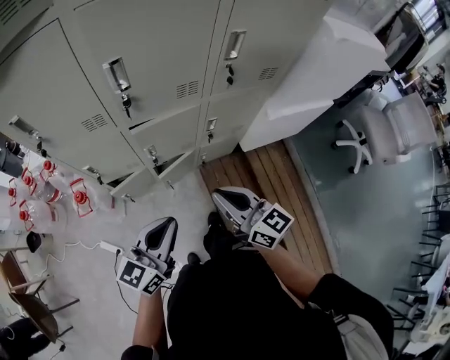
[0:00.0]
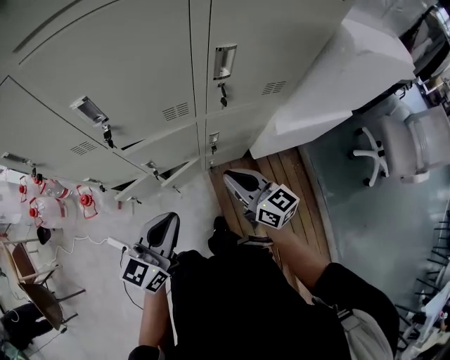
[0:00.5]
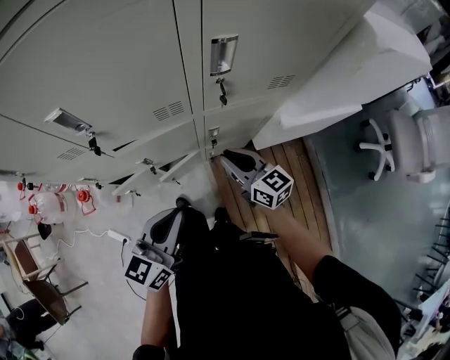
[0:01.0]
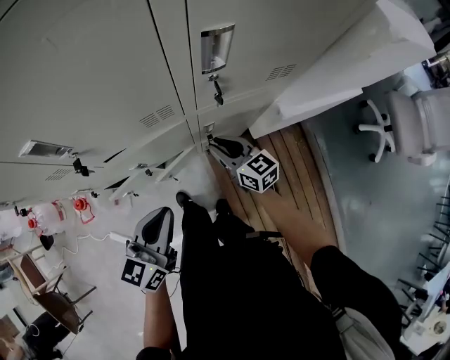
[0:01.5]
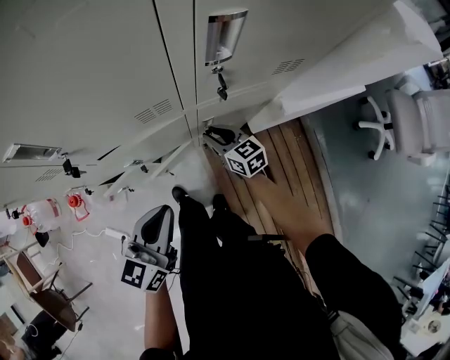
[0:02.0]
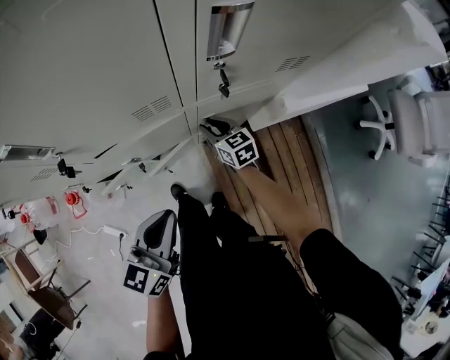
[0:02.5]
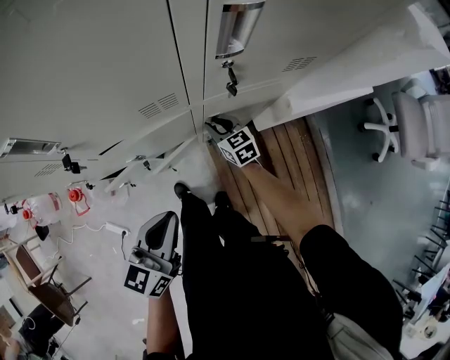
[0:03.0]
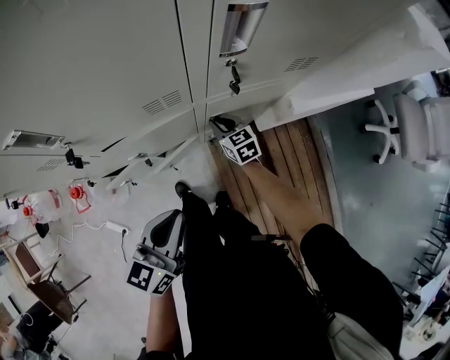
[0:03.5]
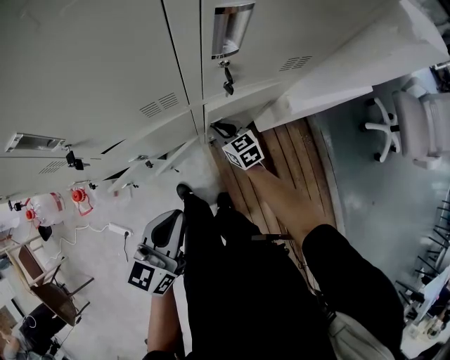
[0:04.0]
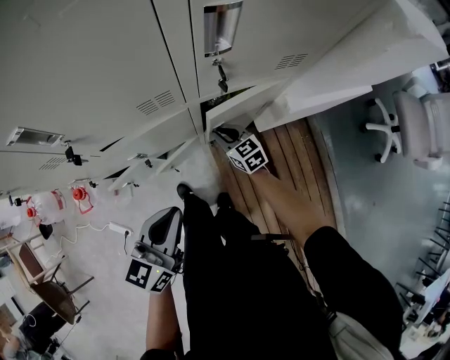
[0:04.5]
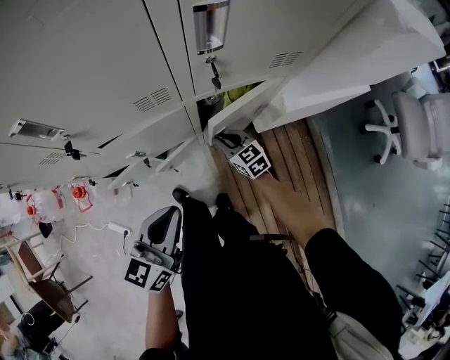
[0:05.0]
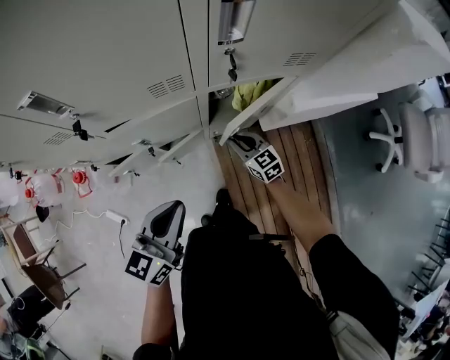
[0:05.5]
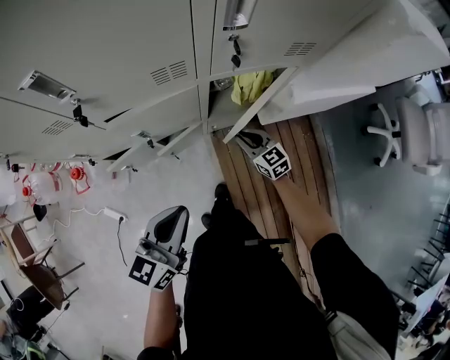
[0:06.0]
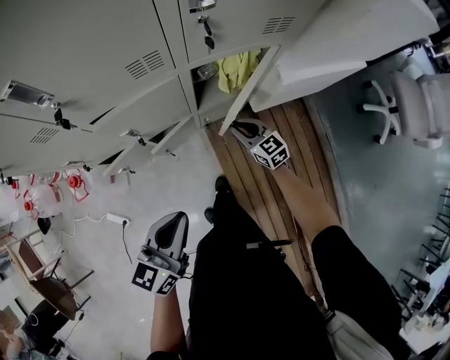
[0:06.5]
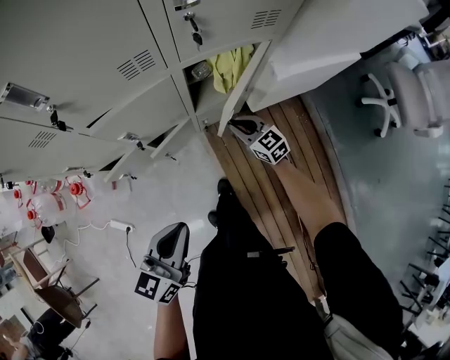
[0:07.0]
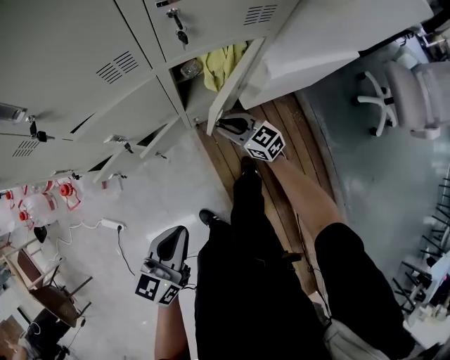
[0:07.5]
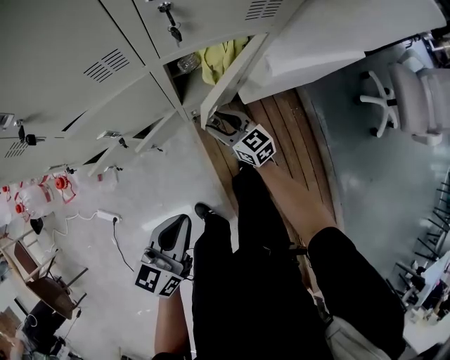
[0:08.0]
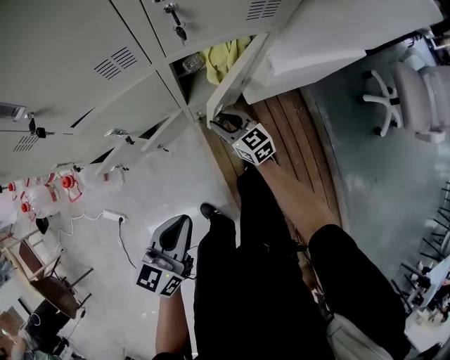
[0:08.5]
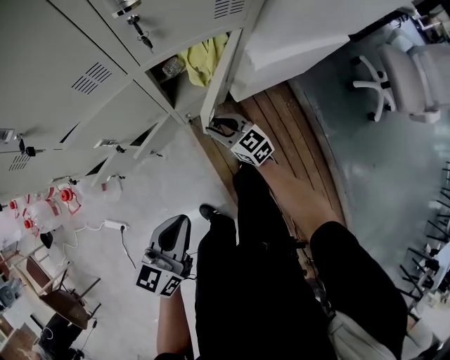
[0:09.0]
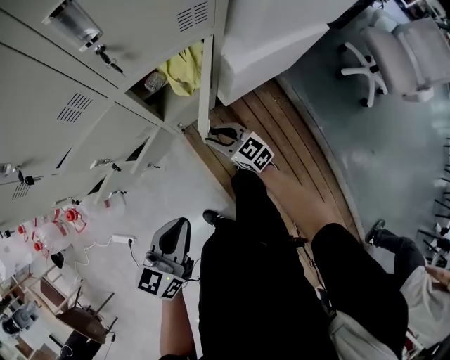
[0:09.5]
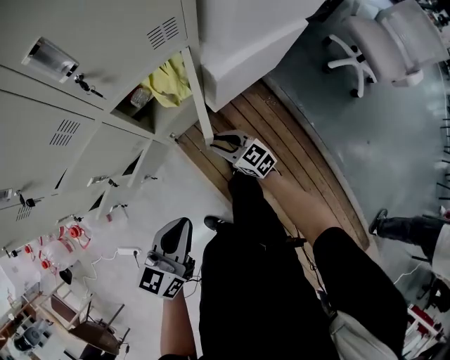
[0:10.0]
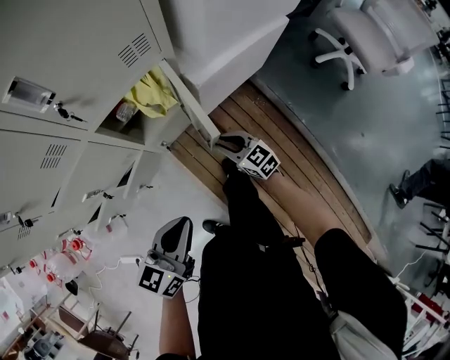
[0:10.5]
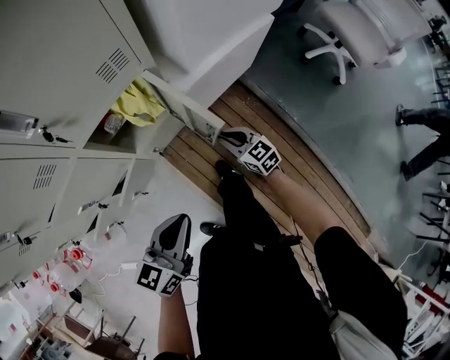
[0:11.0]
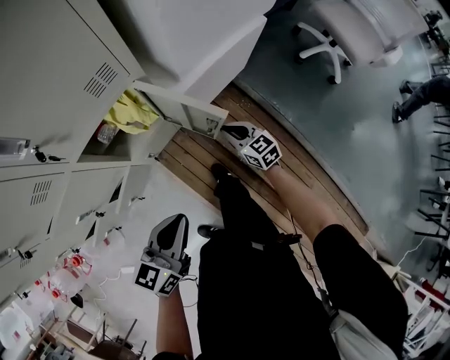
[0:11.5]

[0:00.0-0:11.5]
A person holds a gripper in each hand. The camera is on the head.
0:00.0 to 0:02.0: The right gripper is displaced forward and downward by some 40 cm, and changes its angle by some 20 degrees. The left gripper heads forward and to the right, covering about 20 cm.
0:02.0 to 0:04.0: The right gripper moves roughly 5 cm.
0:04.0 to 0:06.0: The left gripper moves backward, some 5 cm. The right gripper goes about 10 cm backward and to the right.
0:06.0 to 0:07.5: The left gripper shifts about 10 cm backward and downward.
0:07.5 to 0:09.5: Both grippers move to the right, about 5 cm.
0:09.5 to 0:11.5: The left gripper travels to the right and forward by some 15 cm. The right gripper heads to the right, covering about 25 cm, changes its angle by some 20 degrees, and closes its fingers.

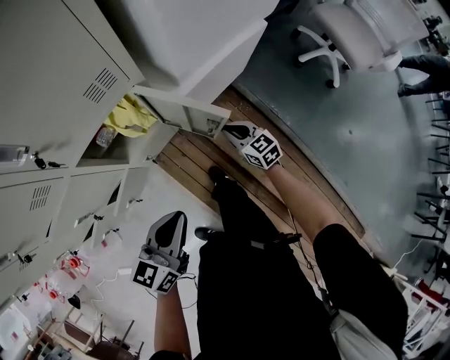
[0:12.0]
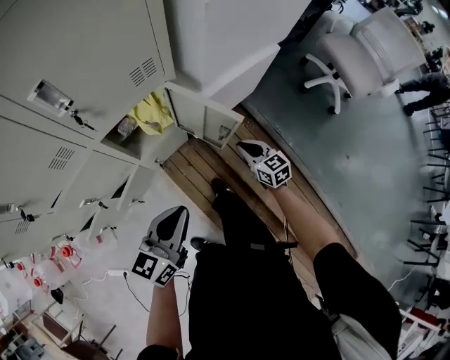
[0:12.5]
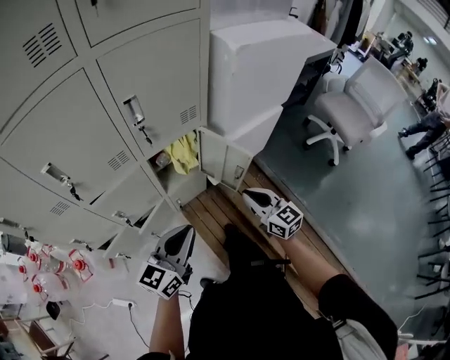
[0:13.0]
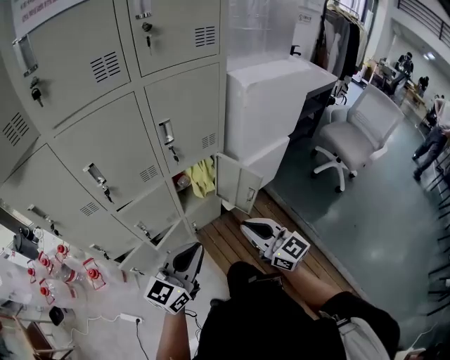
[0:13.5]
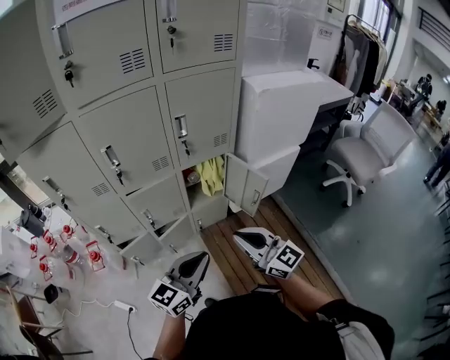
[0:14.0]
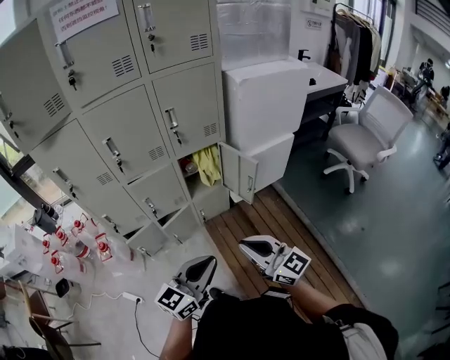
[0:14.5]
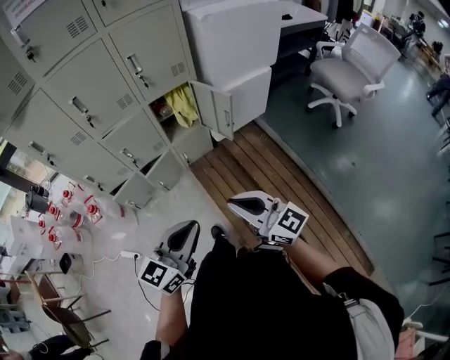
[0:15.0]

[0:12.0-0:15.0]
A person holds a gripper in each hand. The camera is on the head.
0:12.0 to 0:13.5: The left gripper heads upward, backward and to the left, covering about 30 cm, and swivels approximately 30 degrees. Meanwhile the right gripper moves upward, backward and to the left, roughly 50 cm, and tilts its fingers roughly 30 degrees upward.
0:13.5 to 0:15.0: Both grippers move backward, approximately 25 cm.

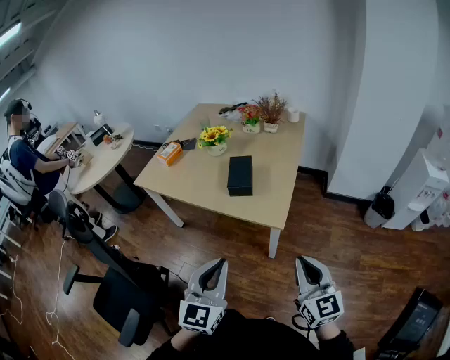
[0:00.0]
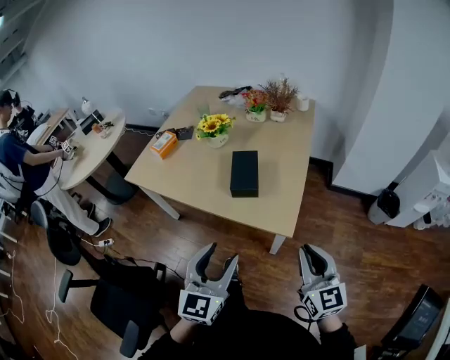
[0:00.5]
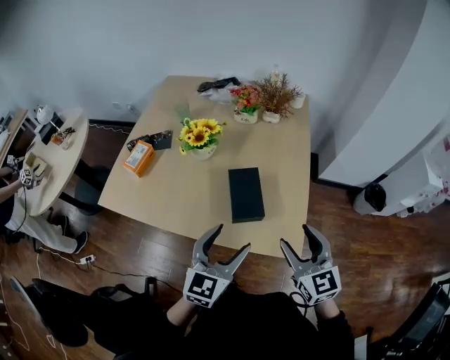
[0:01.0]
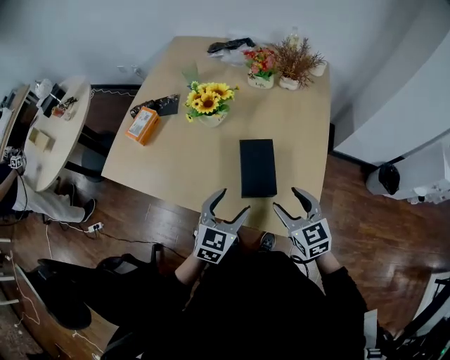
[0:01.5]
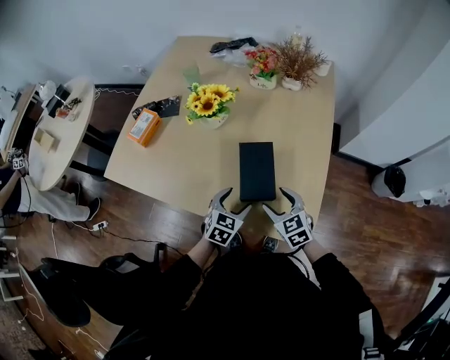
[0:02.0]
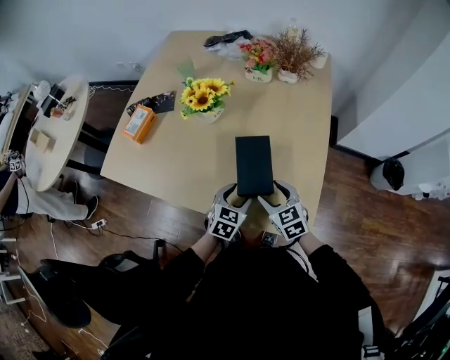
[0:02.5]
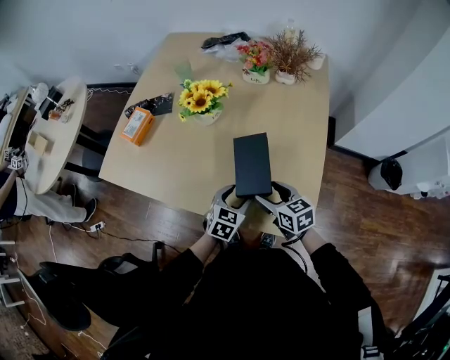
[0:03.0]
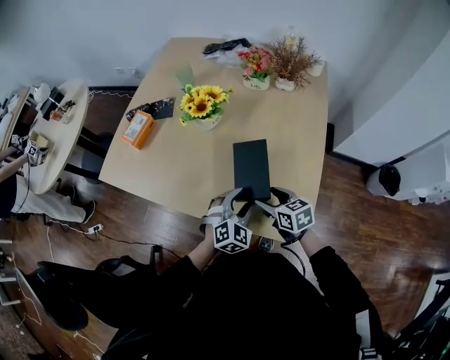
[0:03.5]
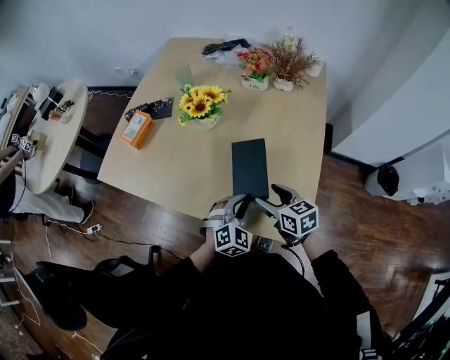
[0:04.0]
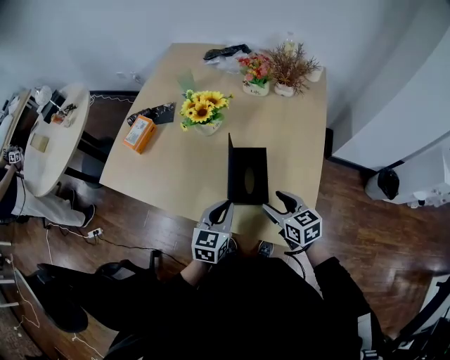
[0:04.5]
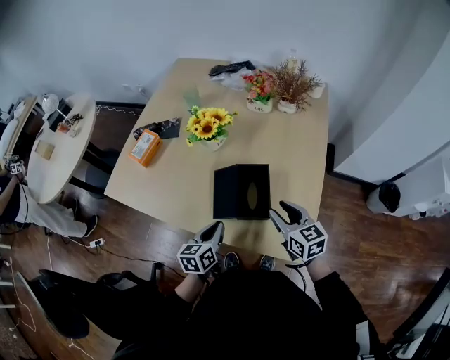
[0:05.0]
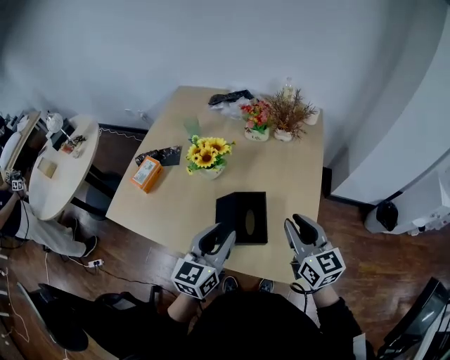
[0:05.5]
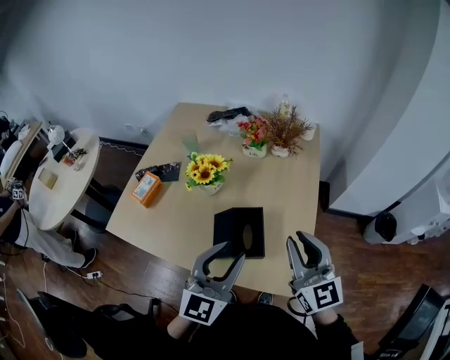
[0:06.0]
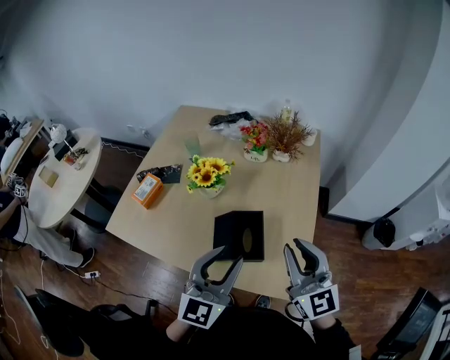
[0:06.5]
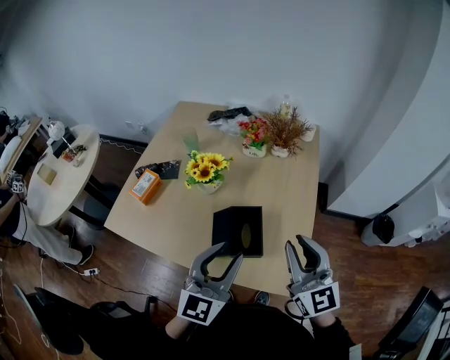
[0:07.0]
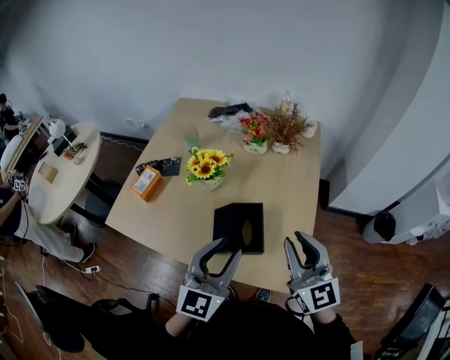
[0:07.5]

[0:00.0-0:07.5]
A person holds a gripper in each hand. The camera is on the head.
0:00.0 to 0:02.0: The pair of grippers is taken forward, roughly 50 cm. The two grippers go roughly 30 cm downward. The right gripper tilts its fingers roughly 30 degrees downward, and opens up, while the left gripper tips its fingers downward by roughly 40 degrees, and opens up.
0:02.0 to 0:04.0: The right gripper turns by roughly 30 degrees. Meanwhile the left gripper changes place by approximately 5 cm, rotates about 30 degrees, and closes its fingers.
0:04.0 to 0:05.5: The two grippers go about 20 cm upward. The right gripper rotates roughly 30 degrees, and closes up; the left gripper twists about 50 degrees counterclockwise, seen from behind.
0:05.5 to 0:07.5: The grippers both shift upward by roughly 5 cm. The left gripper turns by roughly 20 degrees.

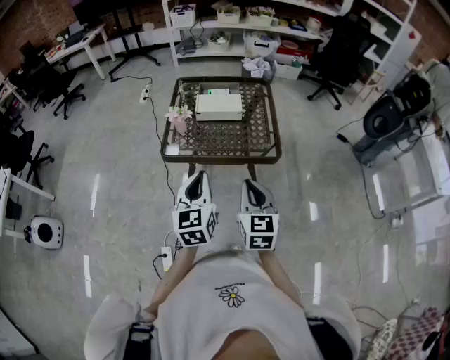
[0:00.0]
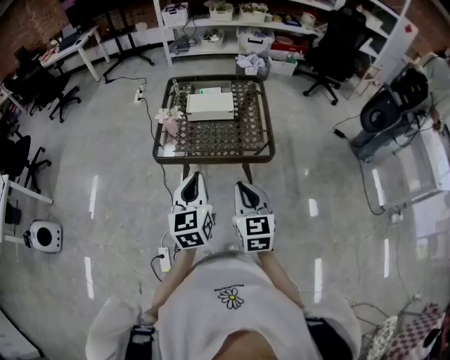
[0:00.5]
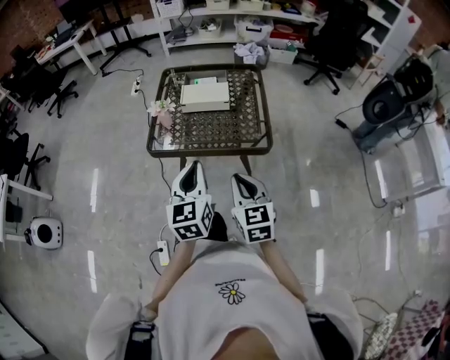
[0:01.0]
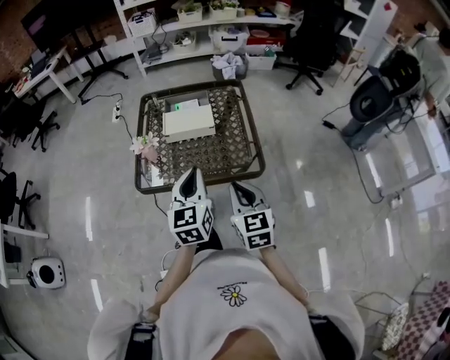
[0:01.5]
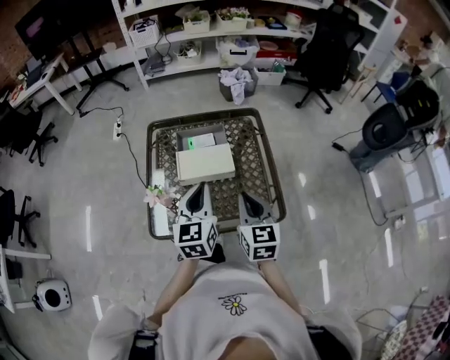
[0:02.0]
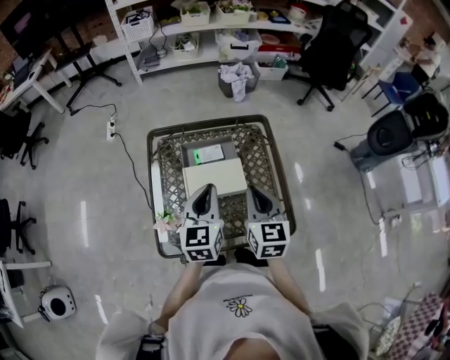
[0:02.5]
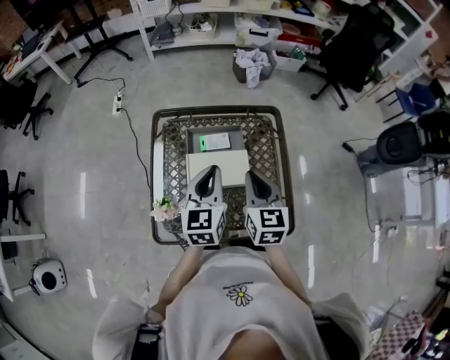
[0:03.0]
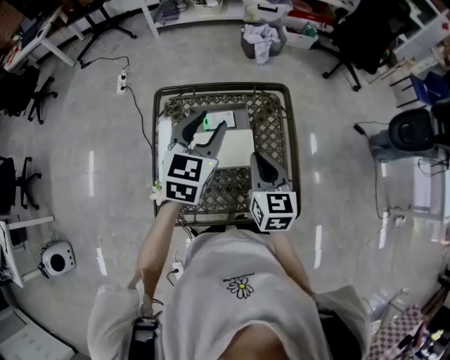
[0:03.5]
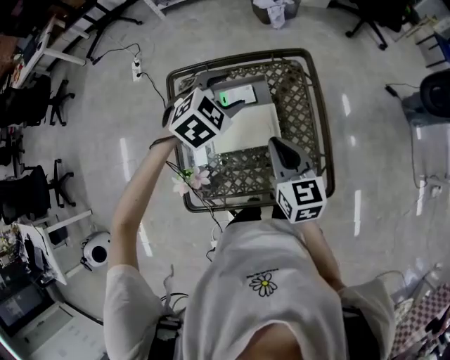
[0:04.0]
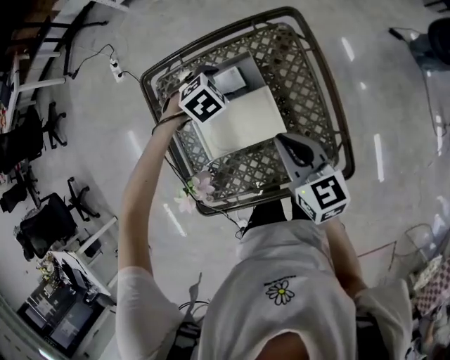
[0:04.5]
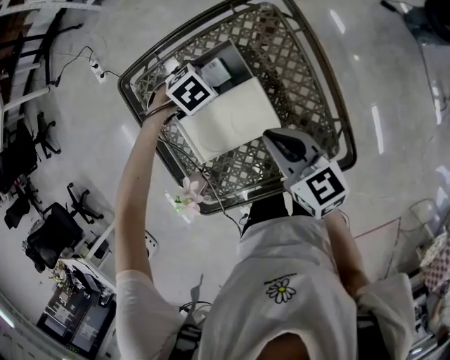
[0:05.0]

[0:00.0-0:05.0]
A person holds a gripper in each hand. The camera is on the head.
0:00.0 to 0:02.5: Both grippers are carried forward, some 40 cm.
0:02.5 to 0:05.0: The left gripper is displaced downward by approximately 30 cm, tilts its fingers roughly 70 degrees downward, and opens up; the right gripper heads downward, covering some 15 cm, and rotates roughly 30 degrees.
